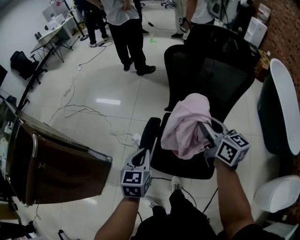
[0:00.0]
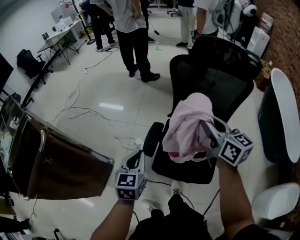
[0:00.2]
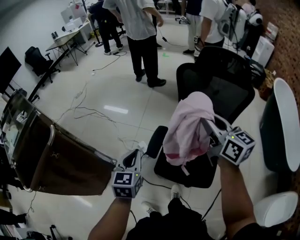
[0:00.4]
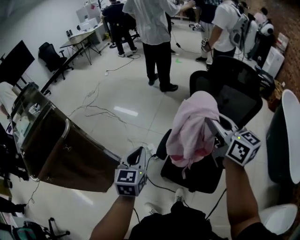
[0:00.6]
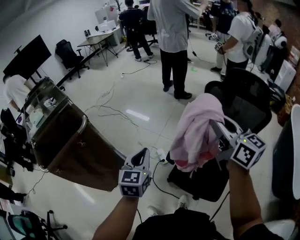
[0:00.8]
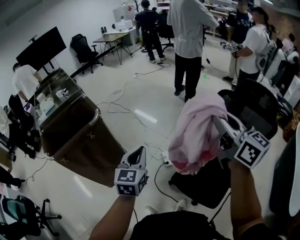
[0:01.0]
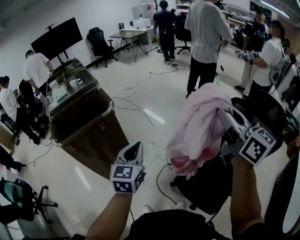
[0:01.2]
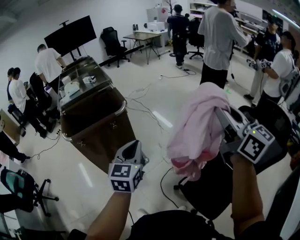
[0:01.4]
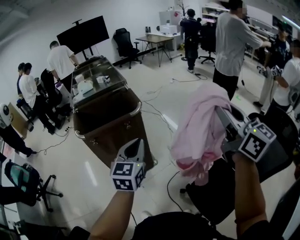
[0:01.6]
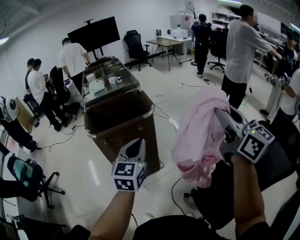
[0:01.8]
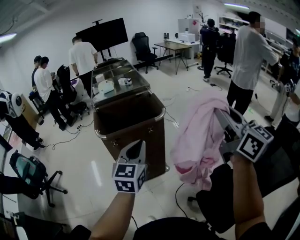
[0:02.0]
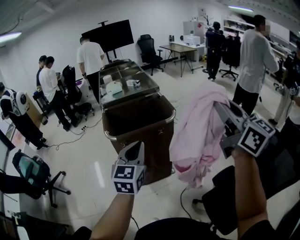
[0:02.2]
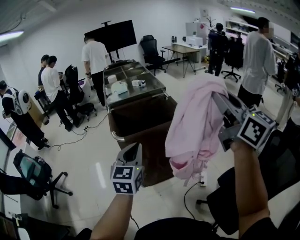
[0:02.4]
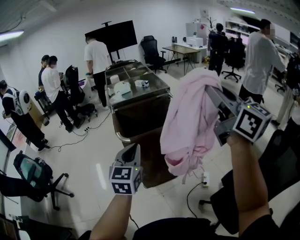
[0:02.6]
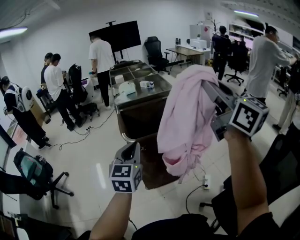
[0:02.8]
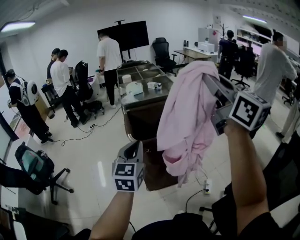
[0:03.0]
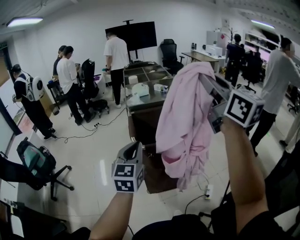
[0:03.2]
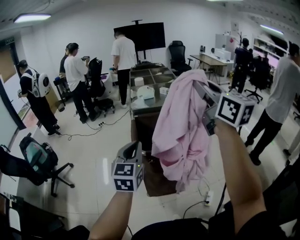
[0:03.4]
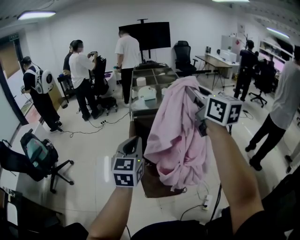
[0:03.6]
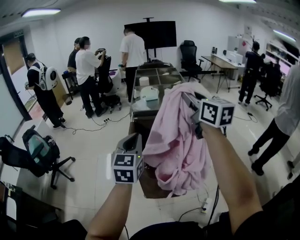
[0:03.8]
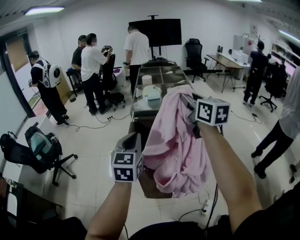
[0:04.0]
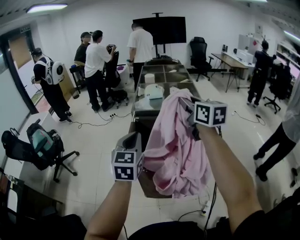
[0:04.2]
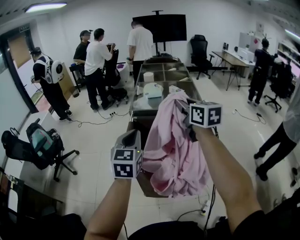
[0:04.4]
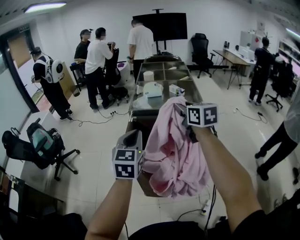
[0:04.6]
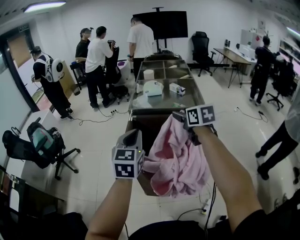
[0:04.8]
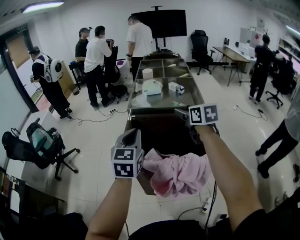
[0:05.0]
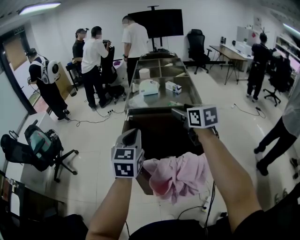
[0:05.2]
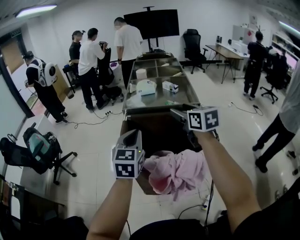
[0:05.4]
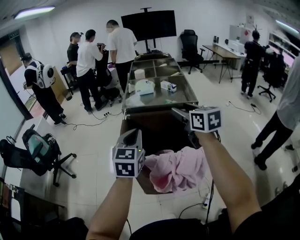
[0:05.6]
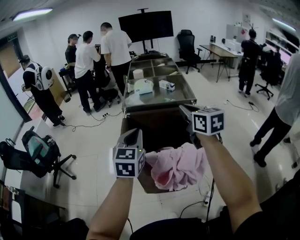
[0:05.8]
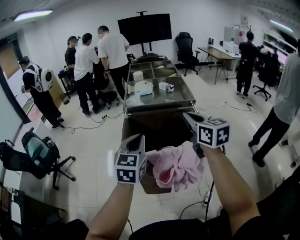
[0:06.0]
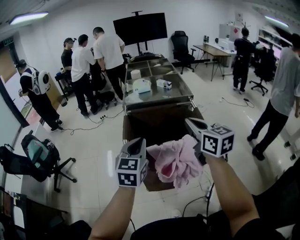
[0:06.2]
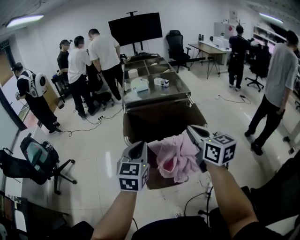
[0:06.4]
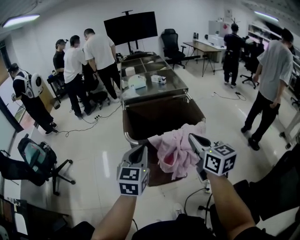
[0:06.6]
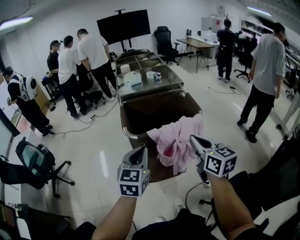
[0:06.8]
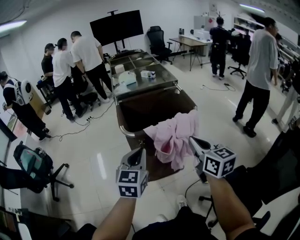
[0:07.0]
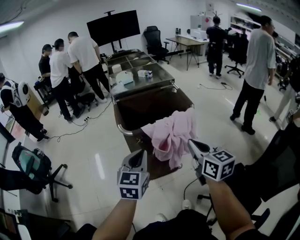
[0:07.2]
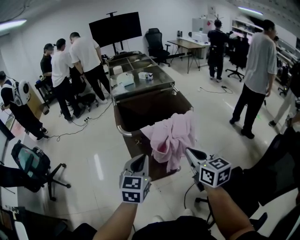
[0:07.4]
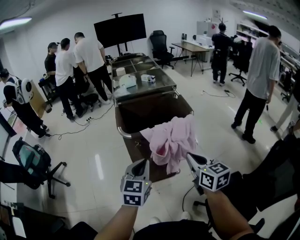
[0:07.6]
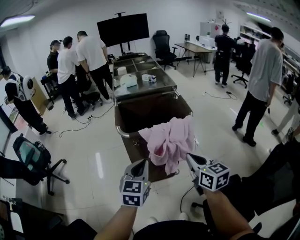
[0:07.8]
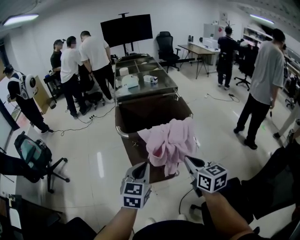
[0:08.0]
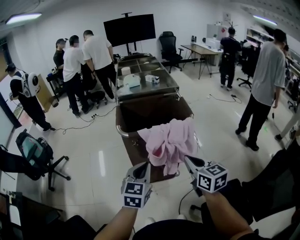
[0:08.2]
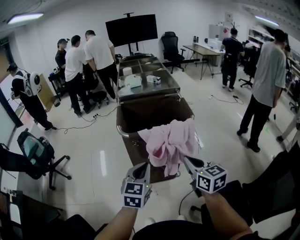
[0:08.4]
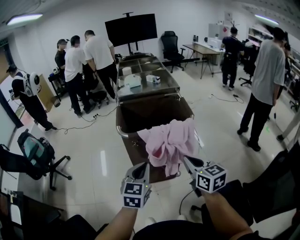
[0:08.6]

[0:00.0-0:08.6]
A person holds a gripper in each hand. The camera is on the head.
0:00.0 to 0:01.4: The left gripper shifts by roughly 35 cm, and rotates some 40 degrees, while the right gripper is displaced upward by approximately 35 cm, and swivels approximately 40 degrees.
0:01.4 to 0:02.8: The left gripper moves to the left, approximately 30 cm. Meanwhile the right gripper shifts roughly 35 cm to the left and forward.
0:02.8 to 0:04.4: The right gripper is displaced forward and downward by approximately 40 cm, and swivels about 30 degrees; the left gripper heads forward, covering about 20 cm, and changes its angle by some 20 degrees.
0:04.4 to 0:05.8: The right gripper travels backward by approximately 5 cm, and opens, then closes again.
0:05.8 to 0:07.2: The left gripper is displaced backward by roughly 20 cm. Meanwhile the right gripper moves backward, roughly 30 cm.
0:07.2 to 0:08.6: The left gripper shifts by some 5 cm.

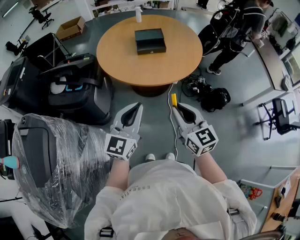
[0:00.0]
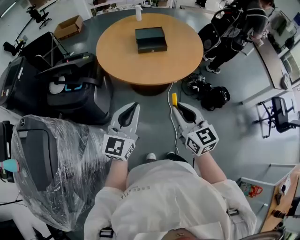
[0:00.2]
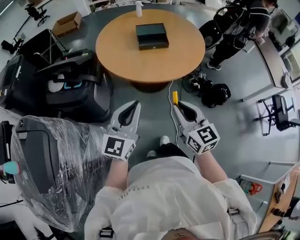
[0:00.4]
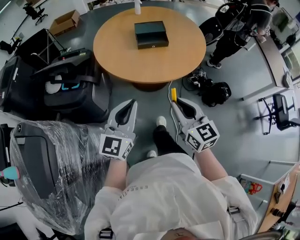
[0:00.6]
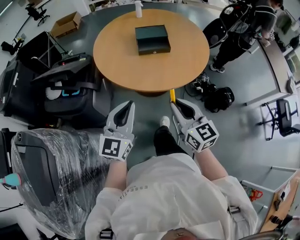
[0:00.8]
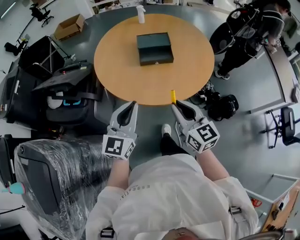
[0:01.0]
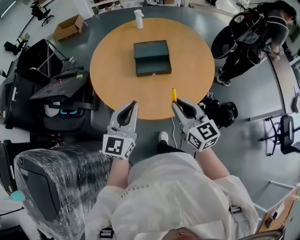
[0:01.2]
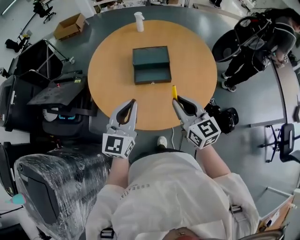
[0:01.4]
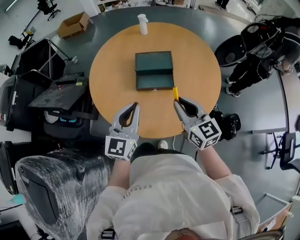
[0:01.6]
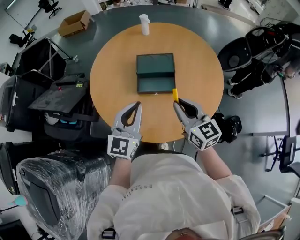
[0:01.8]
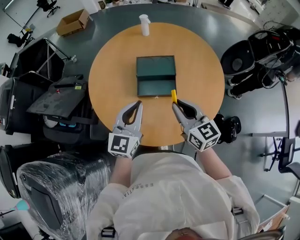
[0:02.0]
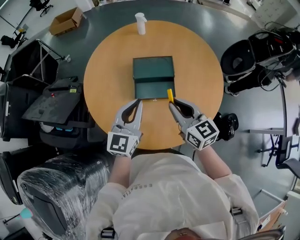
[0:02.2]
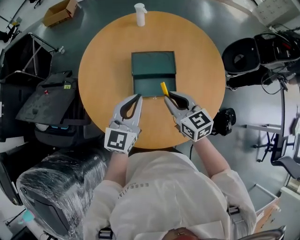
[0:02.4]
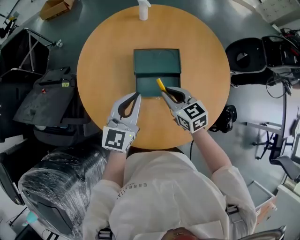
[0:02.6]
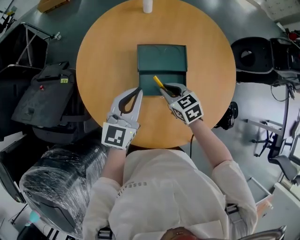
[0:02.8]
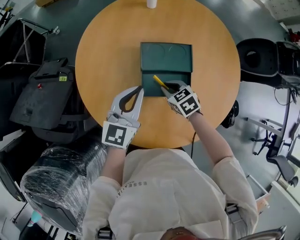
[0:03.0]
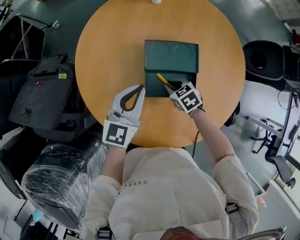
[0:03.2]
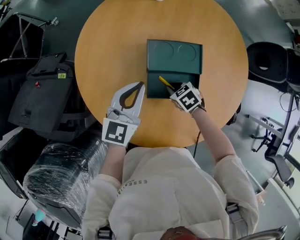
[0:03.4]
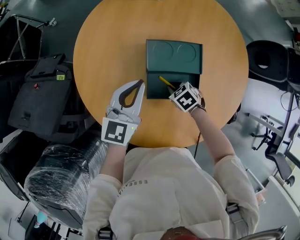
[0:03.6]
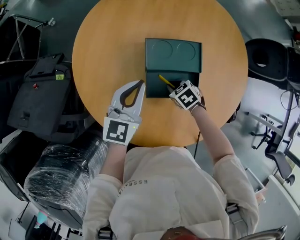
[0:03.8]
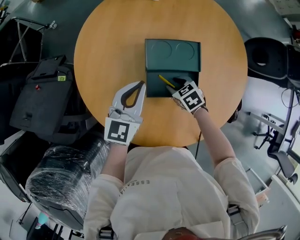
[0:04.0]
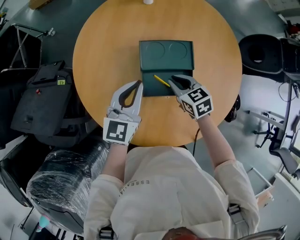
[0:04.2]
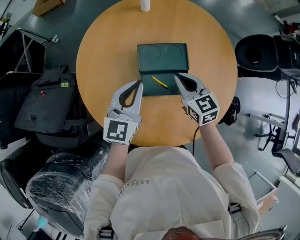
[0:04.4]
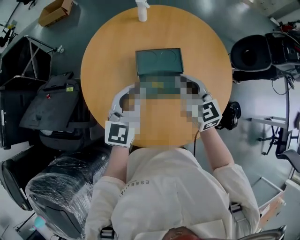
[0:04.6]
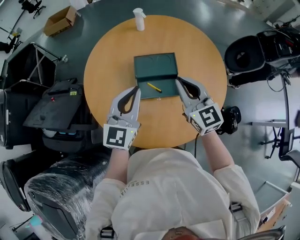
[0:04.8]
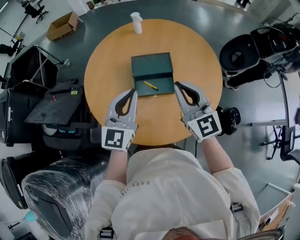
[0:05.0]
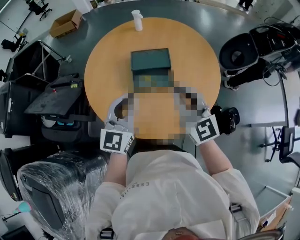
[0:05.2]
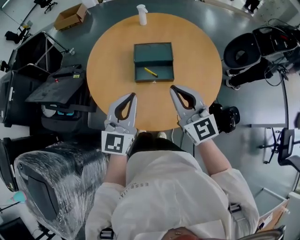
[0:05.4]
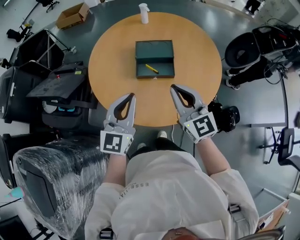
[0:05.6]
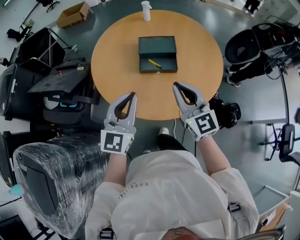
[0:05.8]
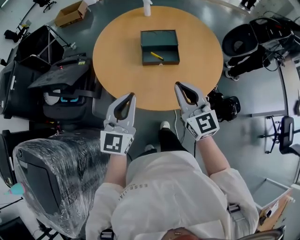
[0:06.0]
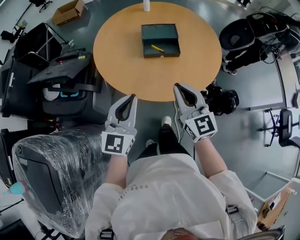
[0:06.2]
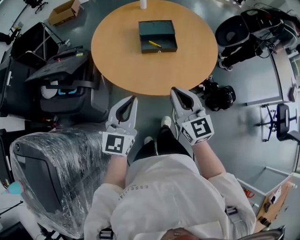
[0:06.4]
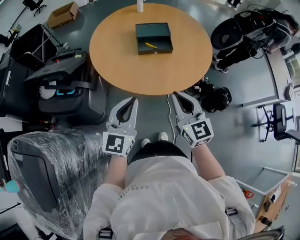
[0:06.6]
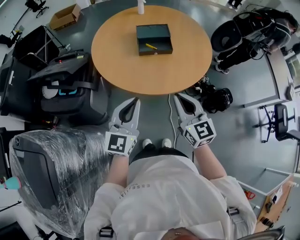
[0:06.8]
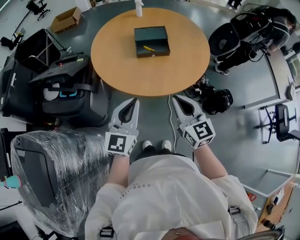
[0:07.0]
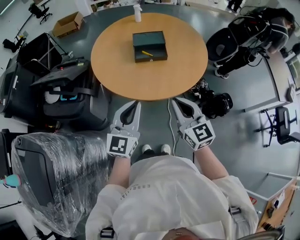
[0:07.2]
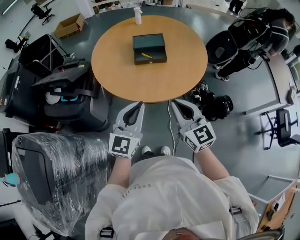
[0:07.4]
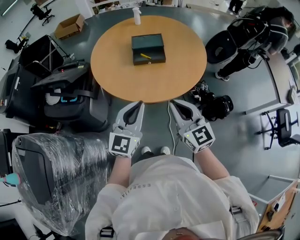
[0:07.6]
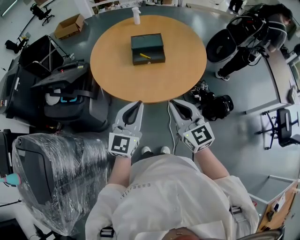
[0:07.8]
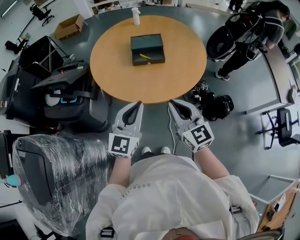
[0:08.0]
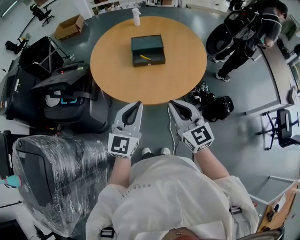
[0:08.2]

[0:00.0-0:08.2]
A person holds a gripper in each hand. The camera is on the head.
0:00.0 to 0:01.6: Both grippers travel together forward, about 40 cm.
0:01.6 to 0:03.2: The right gripper moves downward and forward, some 35 cm, and points its fingers approximately 50 degrees further downward. The left gripper heads forward and downward, covering approximately 25 cm.
0:03.2 to 0:05.0: The right gripper shifts roughly 35 cm upward, points its fingers approximately 60 degrees further upward, and opens, then closes again. The left gripper shifts about 20 cm upward and backward.
0:05.0 to 0:06.6: Both grippers move backward, approximately 30 cm.
0:06.6 to 0:08.2: The left gripper travels to the right by roughly 10 cm. The right gripper travels to the right by some 5 cm.

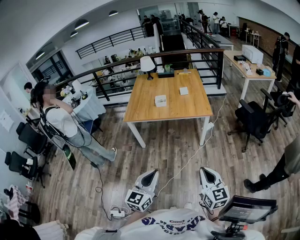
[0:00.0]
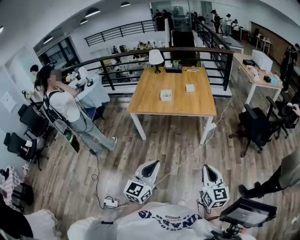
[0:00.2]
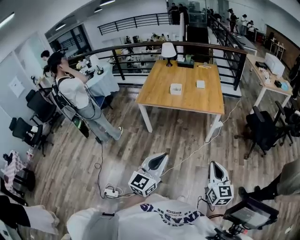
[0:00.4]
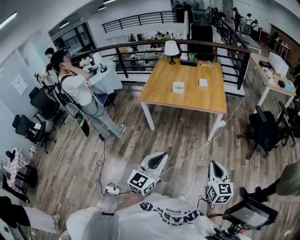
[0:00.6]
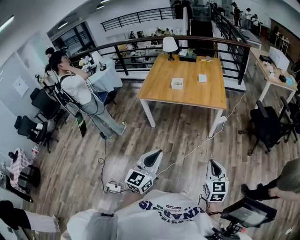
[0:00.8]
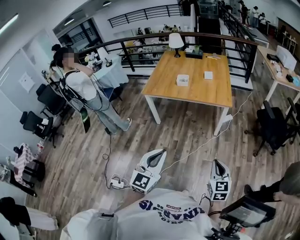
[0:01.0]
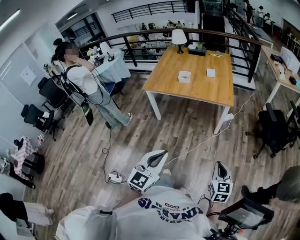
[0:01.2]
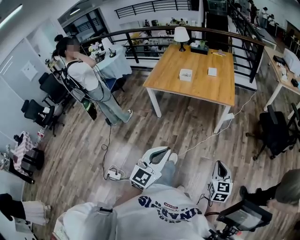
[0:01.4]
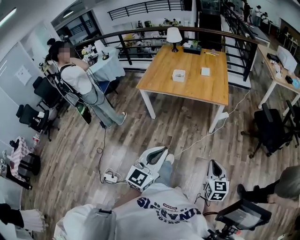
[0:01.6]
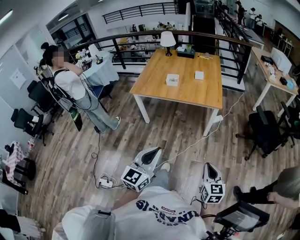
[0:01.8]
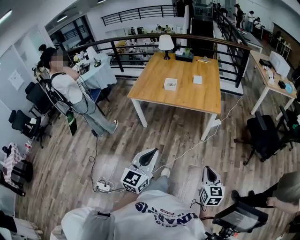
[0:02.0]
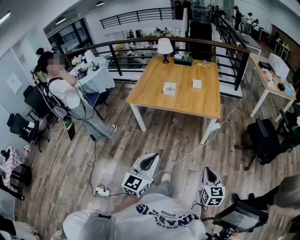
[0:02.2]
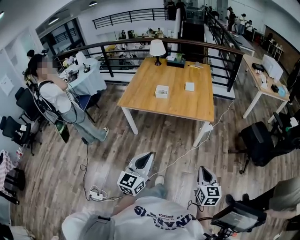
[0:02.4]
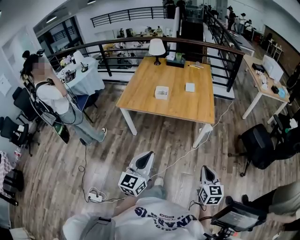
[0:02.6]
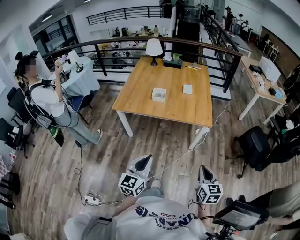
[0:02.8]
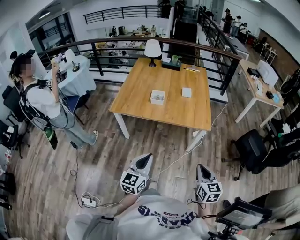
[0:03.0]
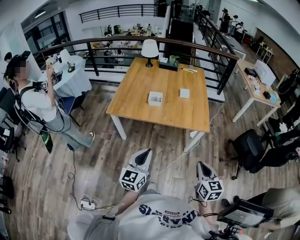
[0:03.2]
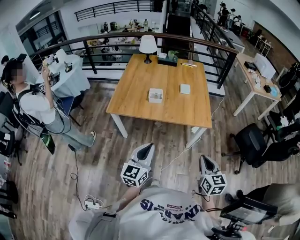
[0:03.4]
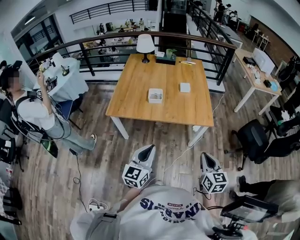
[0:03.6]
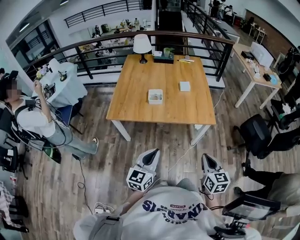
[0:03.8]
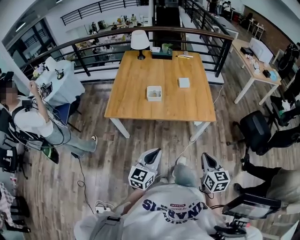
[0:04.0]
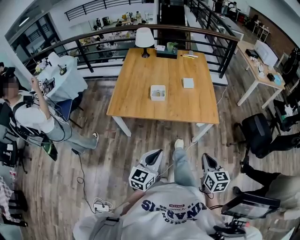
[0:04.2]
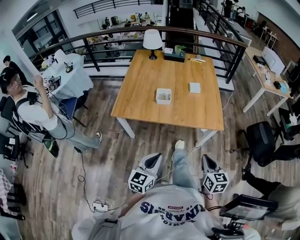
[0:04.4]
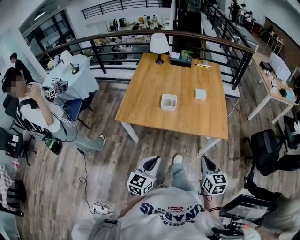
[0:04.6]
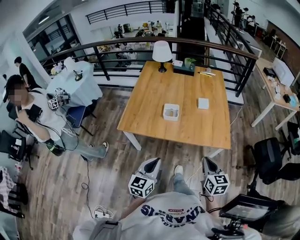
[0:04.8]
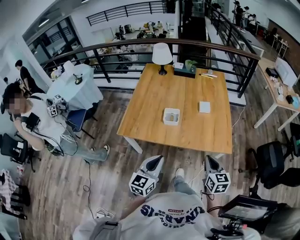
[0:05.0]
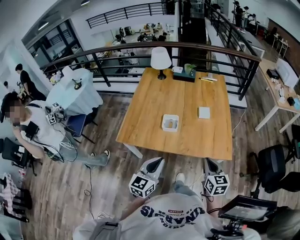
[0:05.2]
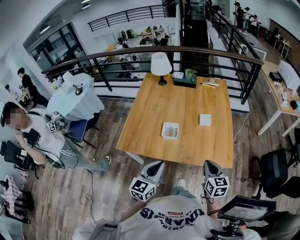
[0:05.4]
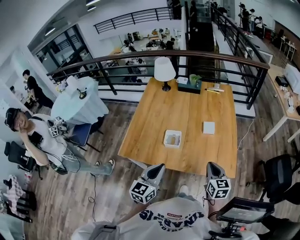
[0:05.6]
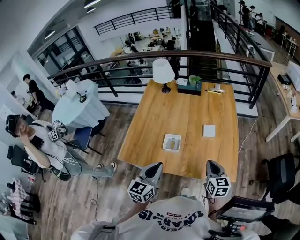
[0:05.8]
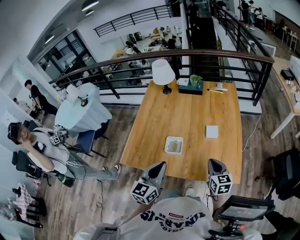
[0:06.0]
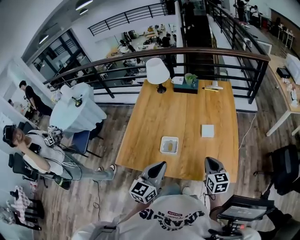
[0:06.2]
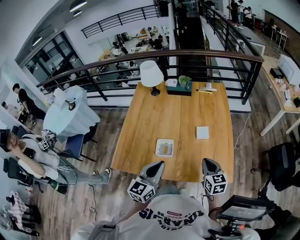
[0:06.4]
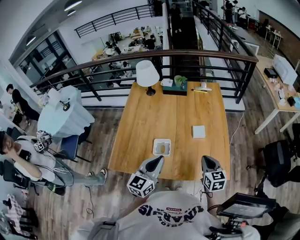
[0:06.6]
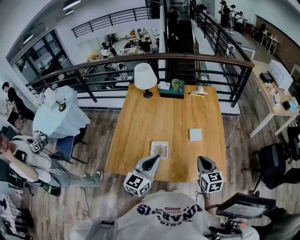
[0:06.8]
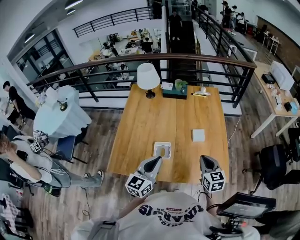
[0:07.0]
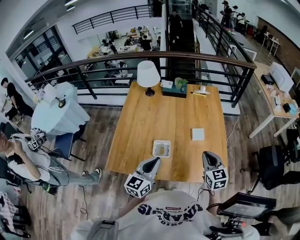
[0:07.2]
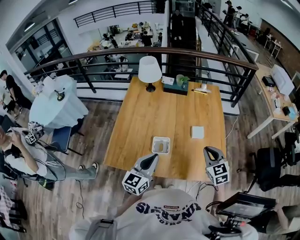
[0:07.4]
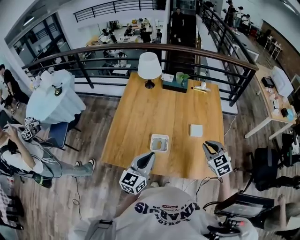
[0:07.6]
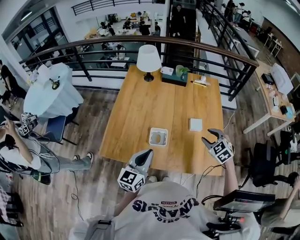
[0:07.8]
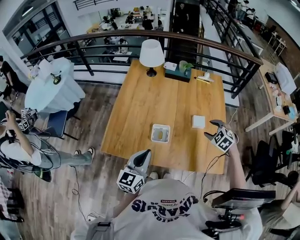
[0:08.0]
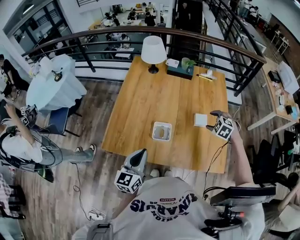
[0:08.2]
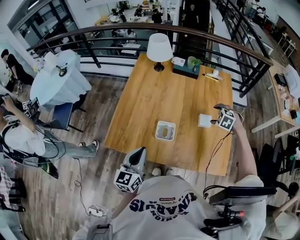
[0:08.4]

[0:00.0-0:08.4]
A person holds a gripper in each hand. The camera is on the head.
0:00.0 to 0:01.4: The left gripper goes approximately 10 cm to the right, while the right gripper heads to the right, downward and forward, covering roughly 15 cm.
0:01.4 to 0:02.8: Both grippers travel together forward, approximately 20 cm.
0:02.8 to 0:04.2: The grippers both shift forward and to the left by approximately 15 cm.
0:04.2 to 0:05.6: Both grippers move forward, approximately 30 cm.
0:05.6 to 0:07.0: The two grippers go approximately 10 cm forward.
0:07.0 to 0:08.4: The right gripper shifts approximately 25 cm forward and downward, tips its fingers downward by roughly 50 degrees, and opens, while the left gripper travels to the left by approximately 10 cm.
